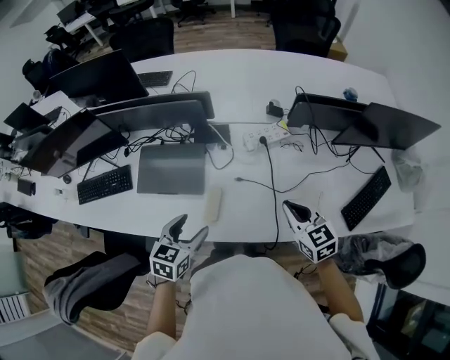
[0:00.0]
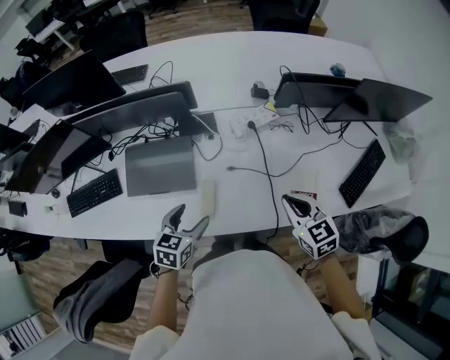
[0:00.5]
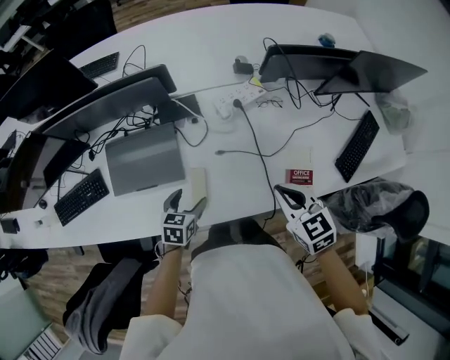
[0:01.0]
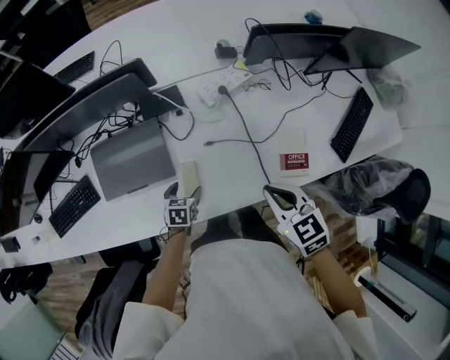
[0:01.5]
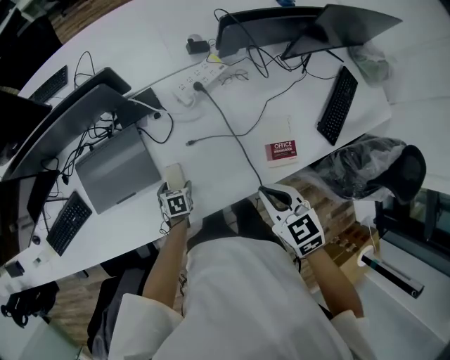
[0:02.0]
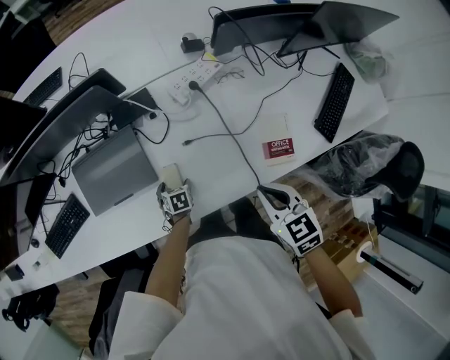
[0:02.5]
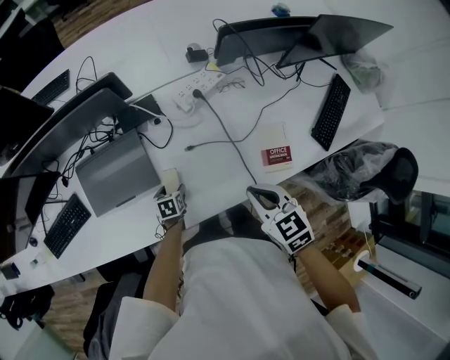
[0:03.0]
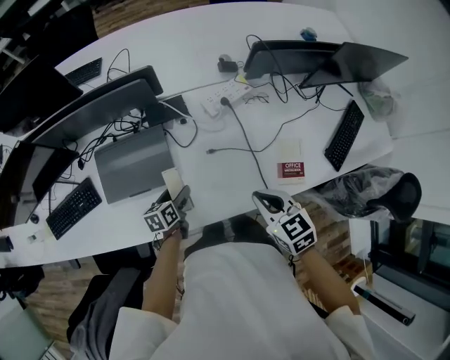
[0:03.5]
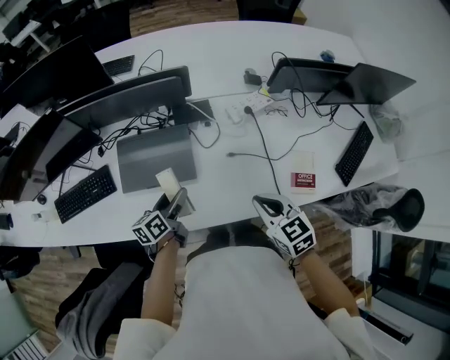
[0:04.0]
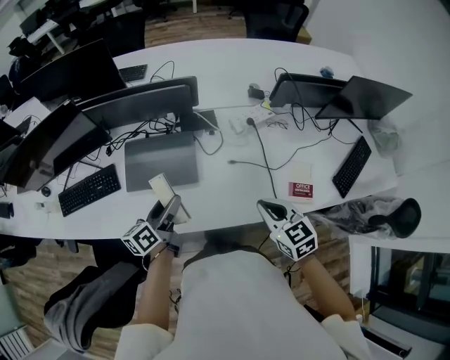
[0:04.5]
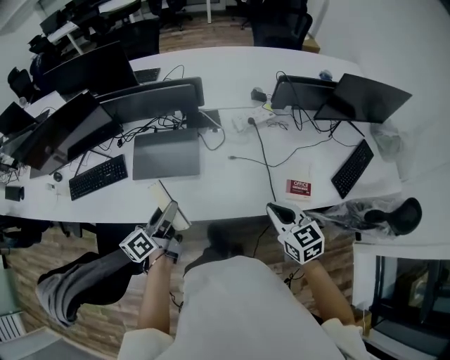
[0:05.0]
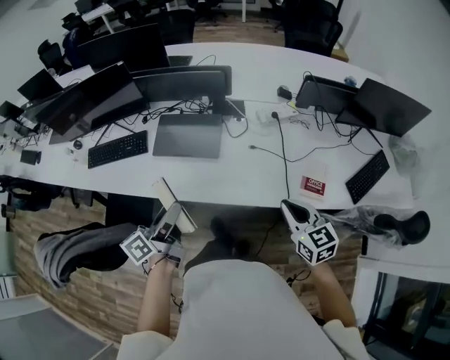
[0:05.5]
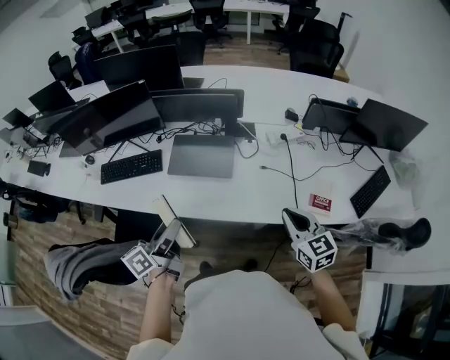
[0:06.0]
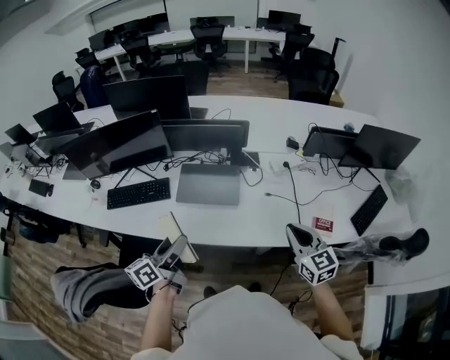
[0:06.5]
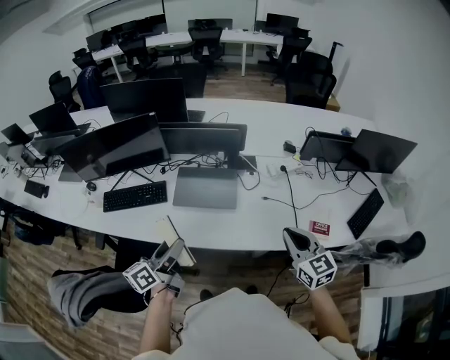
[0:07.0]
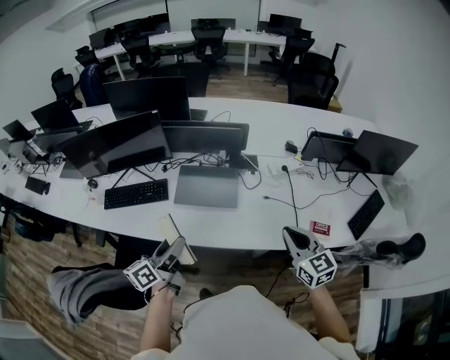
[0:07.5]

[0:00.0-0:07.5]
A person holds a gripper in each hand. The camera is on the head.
0:00.0 to 0:02.0: The right gripper shifts about 10 cm downward and backward, and rotates about 20 degrees. Meanwhile the left gripper heads downward, covering some 35 cm, and tips its fingers downward by approximately 30 degrees.
0:02.0 to 0:04.0: The left gripper shifts approximately 25 cm upward and to the left, and tilts its fingers about 50 degrees upward. Meanwhile the right gripper is displaced to the left by roughly 15 cm.
0:04.0 to 0:05.5: The left gripper moves backward and upward, some 30 cm, and rotates about 30 degrees; the right gripper travels backward, upward and to the right by some 20 cm.
0:05.5 to 0:07.5: The left gripper goes about 15 cm to the left. The right gripper moves to the left and upward, about 15 cm.

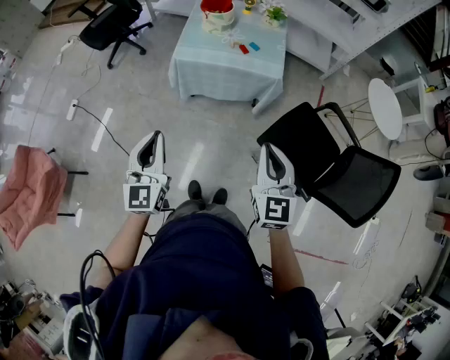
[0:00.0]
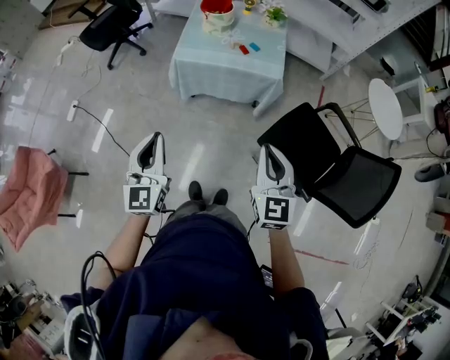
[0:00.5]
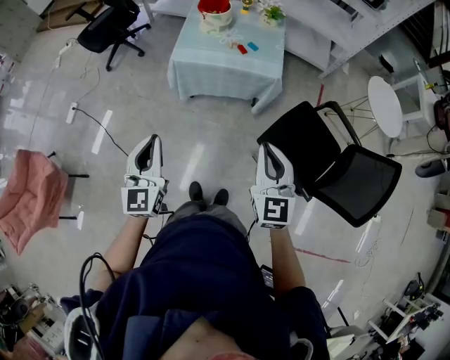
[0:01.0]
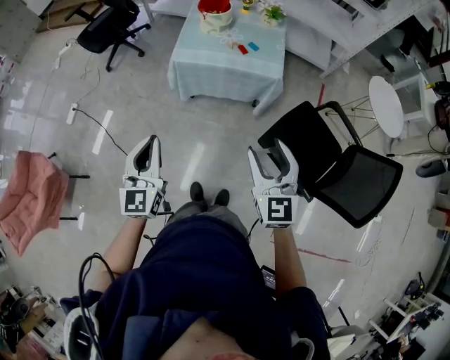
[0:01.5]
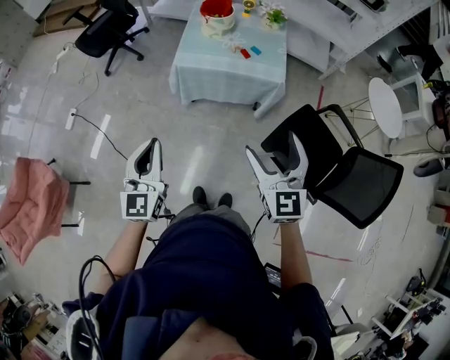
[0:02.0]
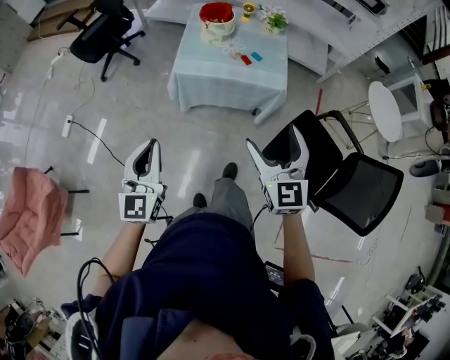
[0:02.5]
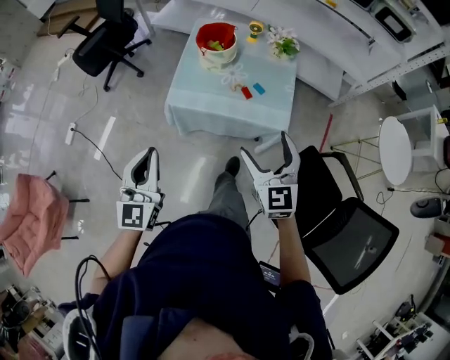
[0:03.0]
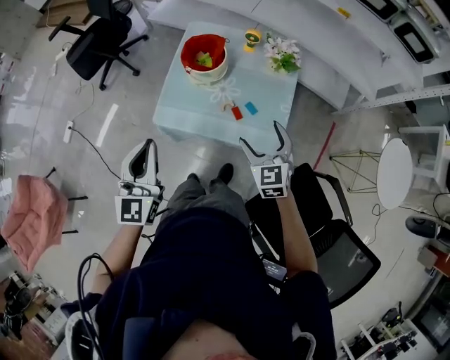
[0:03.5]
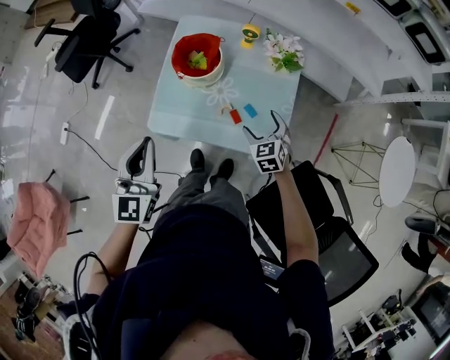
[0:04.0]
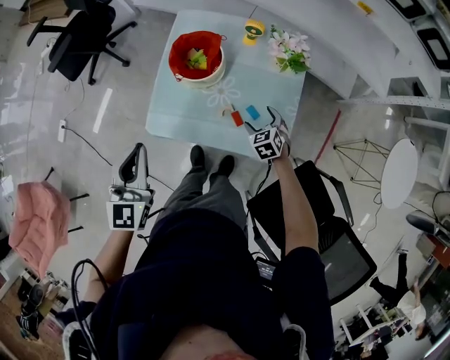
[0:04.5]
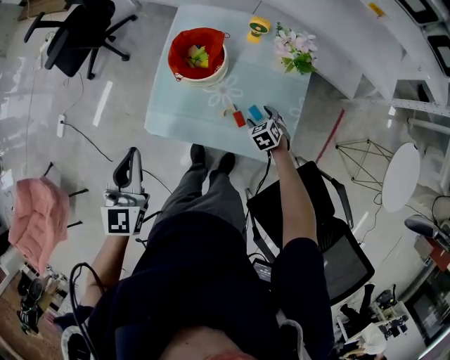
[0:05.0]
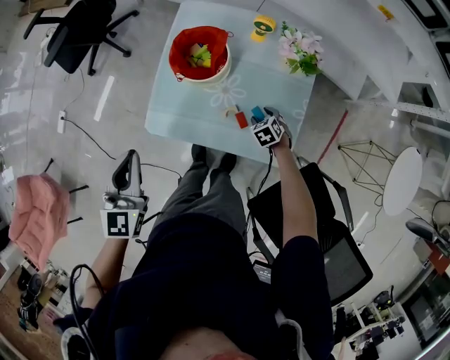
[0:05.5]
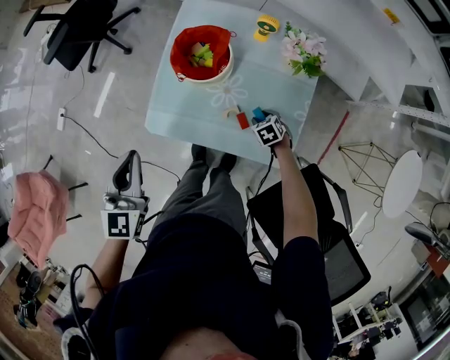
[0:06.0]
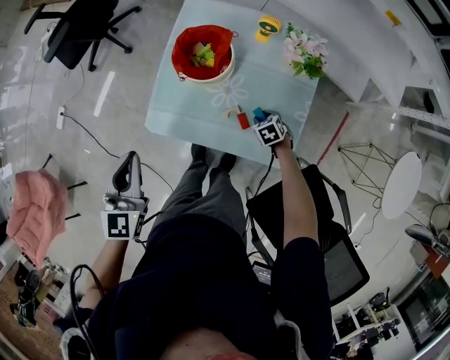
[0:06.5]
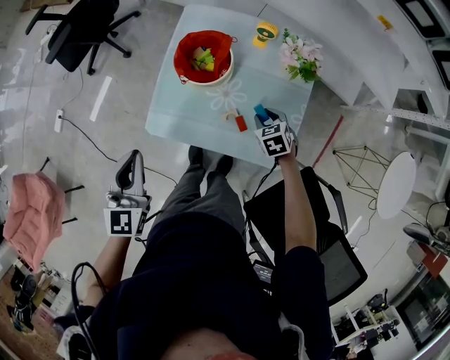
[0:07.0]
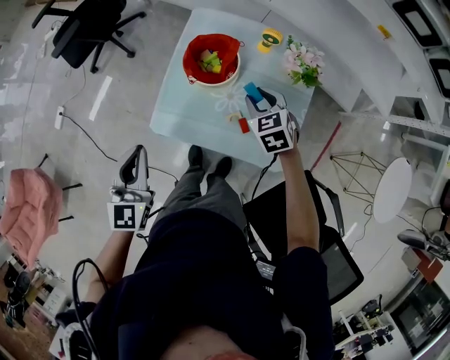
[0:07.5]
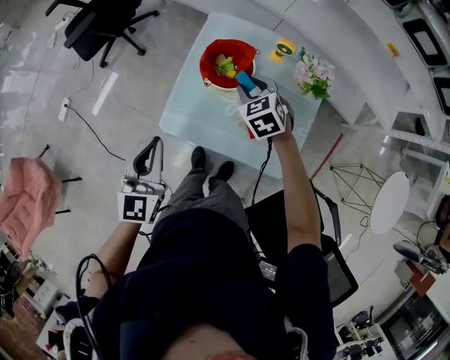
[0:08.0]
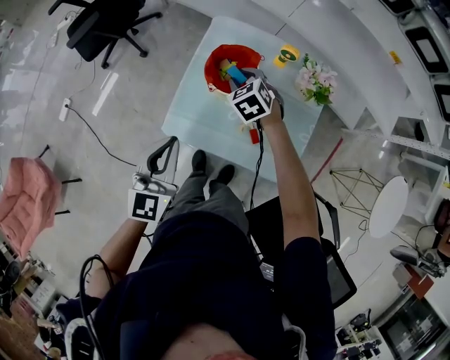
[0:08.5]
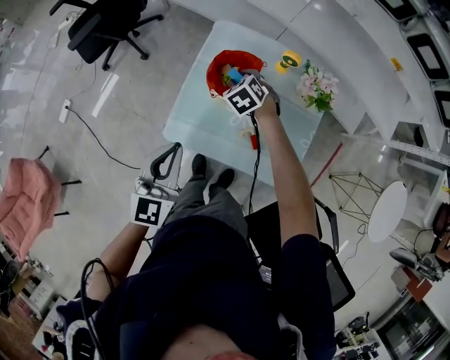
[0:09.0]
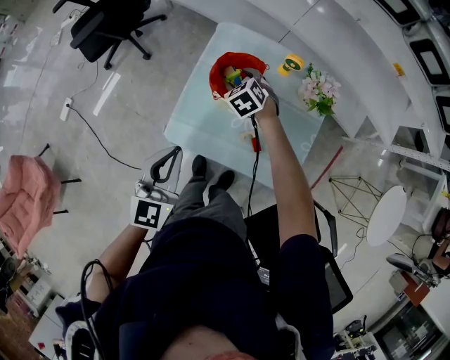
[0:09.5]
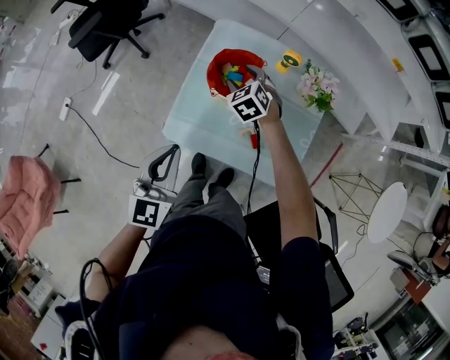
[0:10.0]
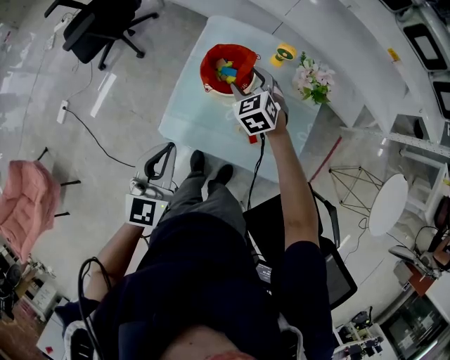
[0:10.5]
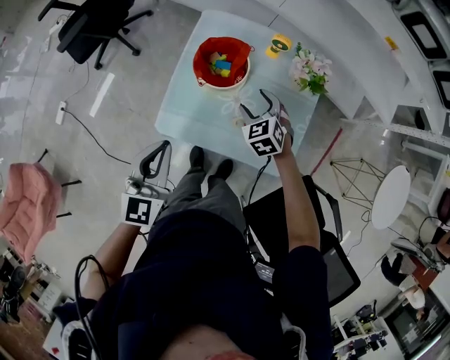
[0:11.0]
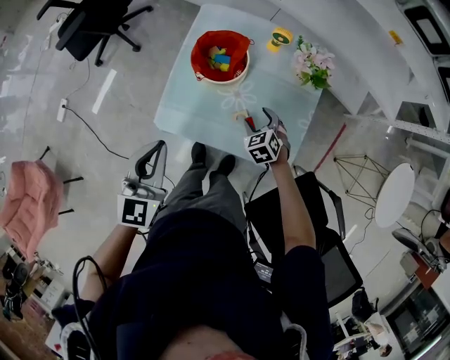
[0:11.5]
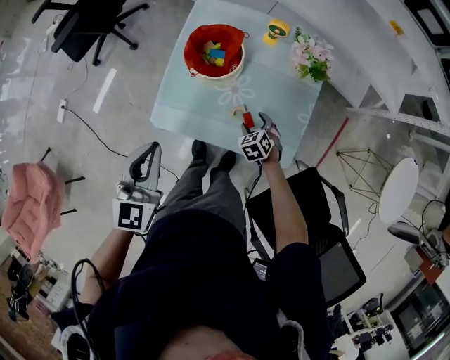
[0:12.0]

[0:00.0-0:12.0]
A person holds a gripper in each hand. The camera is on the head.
0:00.0 to 0:02.0: The right gripper moves approximately 5 cm, and opens up.
0:02.0 to 0:04.0: The two grippers travel together, forward, some 50 cm. The right gripper shifts some 30 cm downward, and tips its fingers downward by roughly 30 degrees.
0:04.0 to 0:06.0: The left gripper travels downward by about 5 cm; the right gripper goes about 20 cm downward, changes its angle by about 30 degrees, and closes its fingers.
0:06.0 to 0:08.0: The right gripper heads upward, forward and to the left, covering some 35 cm, and swivels some 30 degrees.
0:08.0 to 0:10.0: The right gripper goes roughly 10 cm forward and downward.
0:10.0 to 0:12.0: The right gripper shifts roughly 30 cm backward, downward and to the right.

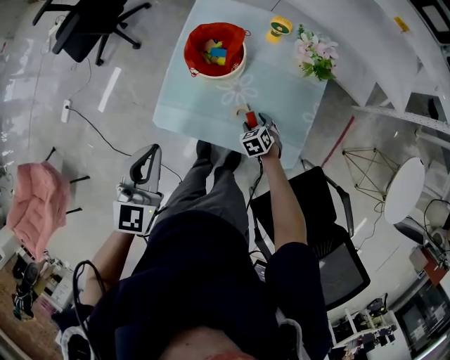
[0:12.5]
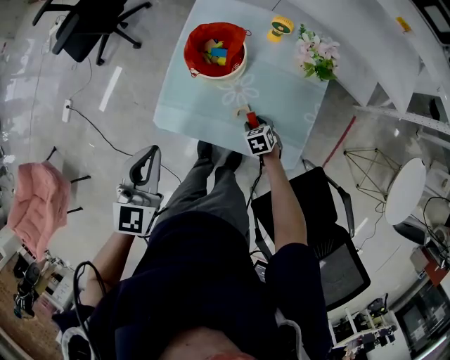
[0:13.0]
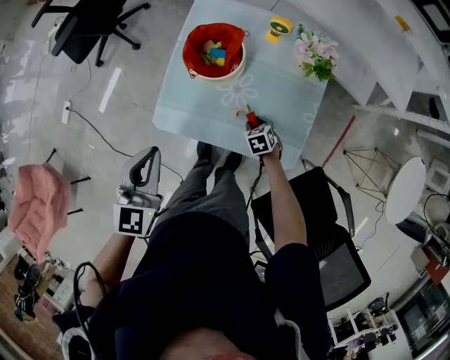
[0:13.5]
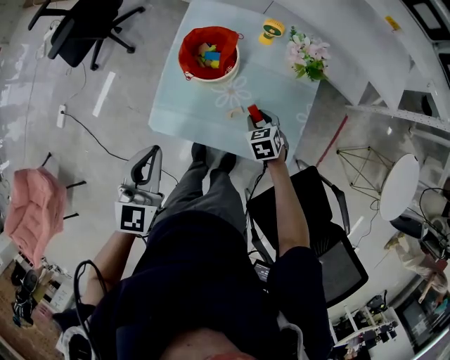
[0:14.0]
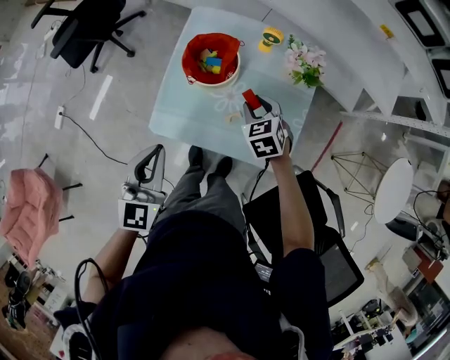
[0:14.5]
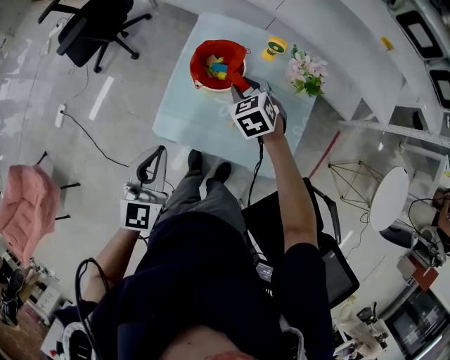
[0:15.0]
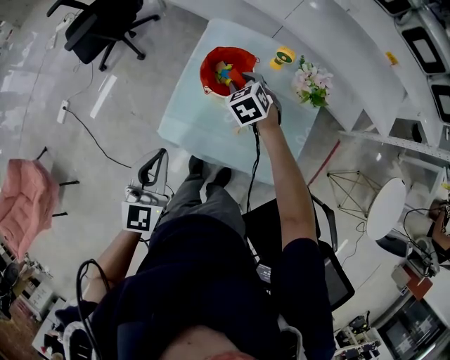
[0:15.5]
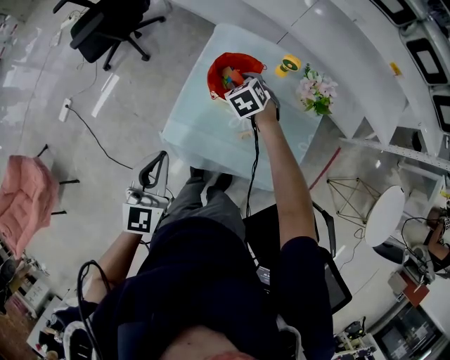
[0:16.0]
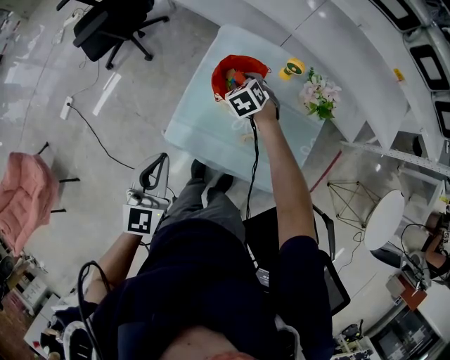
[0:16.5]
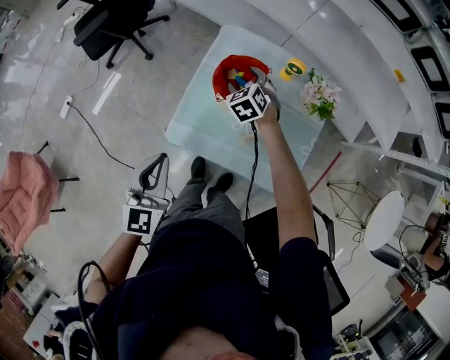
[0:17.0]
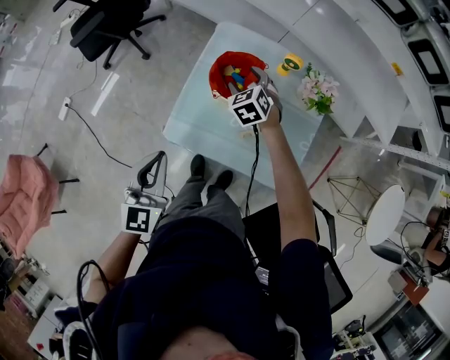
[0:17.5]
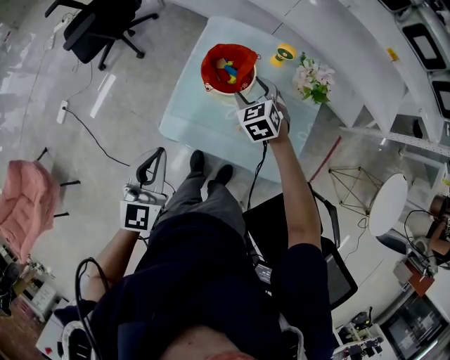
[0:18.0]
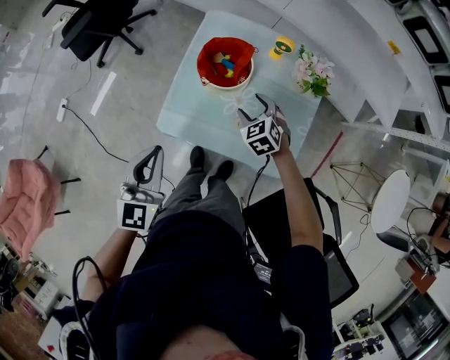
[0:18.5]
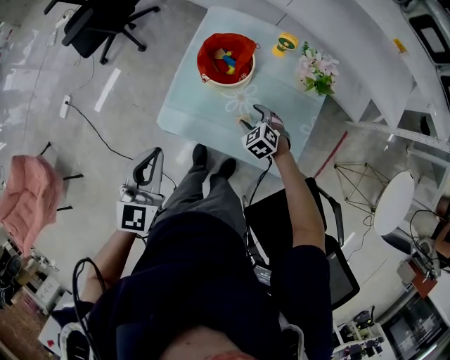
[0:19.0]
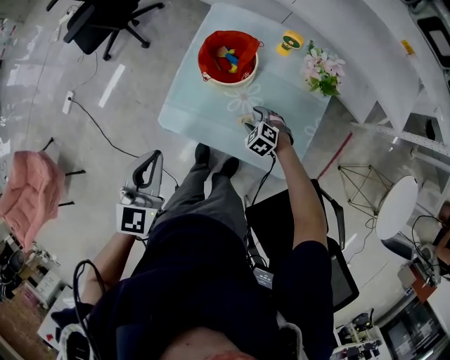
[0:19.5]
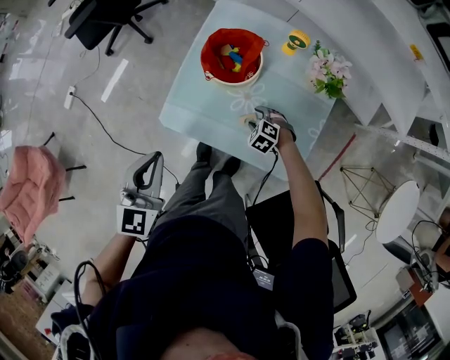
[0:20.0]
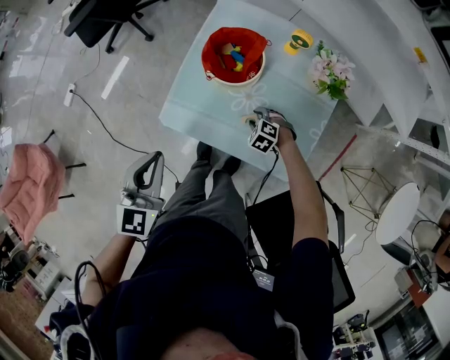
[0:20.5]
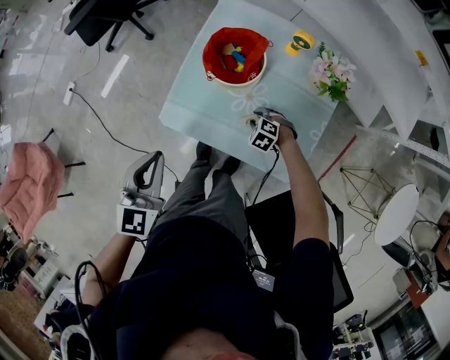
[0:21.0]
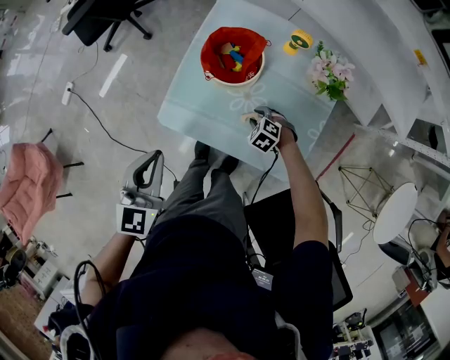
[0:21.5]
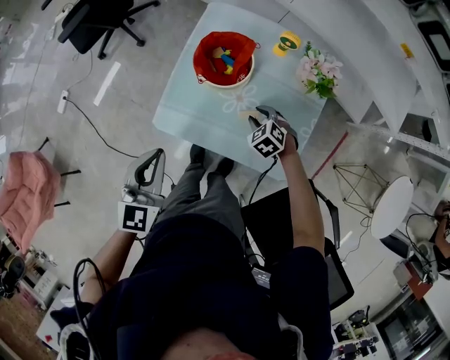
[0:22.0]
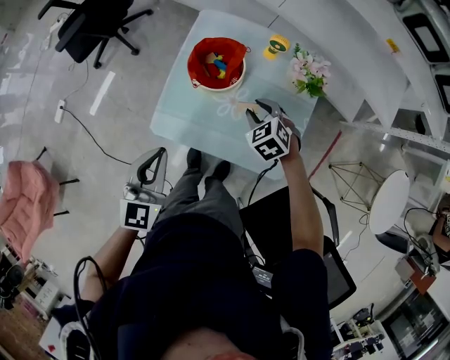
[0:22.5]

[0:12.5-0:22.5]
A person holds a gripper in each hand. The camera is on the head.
0:12.5 to 0:14.5: The right gripper shifts roughly 20 cm upward.
0:14.5 to 0:16.5: The left gripper moves to the left, roughly 5 cm. The right gripper is displaced forward and to the left by about 20 cm.
0:16.5 to 0:18.5: The right gripper travels backward and to the right by about 15 cm.
0:18.5 to 0:20.5: The right gripper moves downward, about 20 cm, and changes its angle by about 30 degrees.
0:20.5 to 0:22.5: The right gripper is displaced upward by about 20 cm, and changes its angle by approximately 30 degrees.
